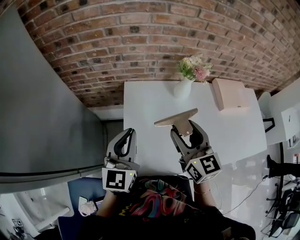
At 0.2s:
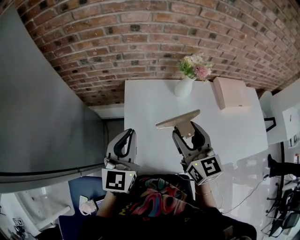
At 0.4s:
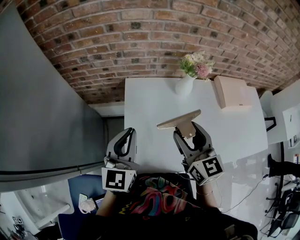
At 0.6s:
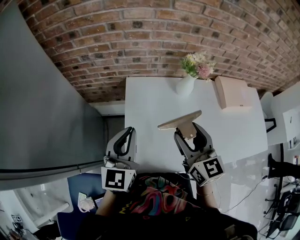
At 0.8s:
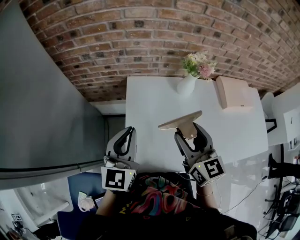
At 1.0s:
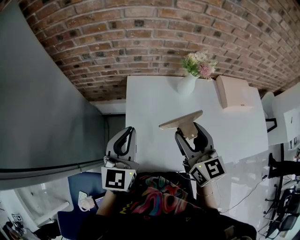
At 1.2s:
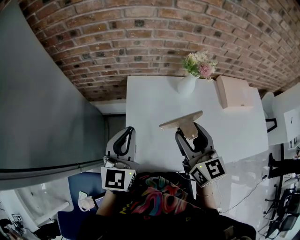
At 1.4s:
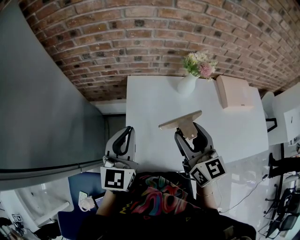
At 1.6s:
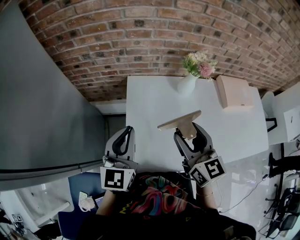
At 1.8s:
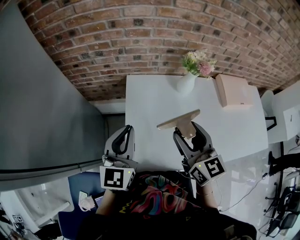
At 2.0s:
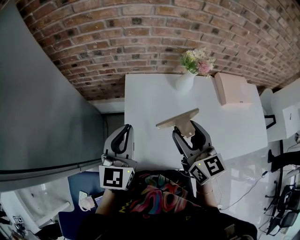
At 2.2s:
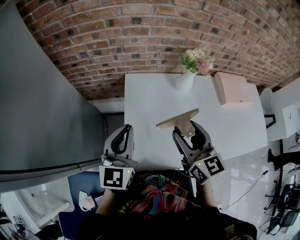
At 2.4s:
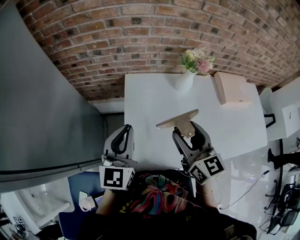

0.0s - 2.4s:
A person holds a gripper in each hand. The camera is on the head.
0.0s - 1.2s: The grippers stay close to where they were, moving slightly.
1.2s - 2.4s: Both grippers stay put.

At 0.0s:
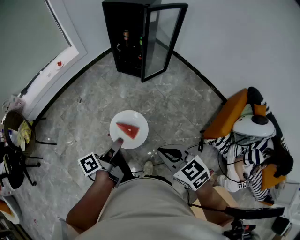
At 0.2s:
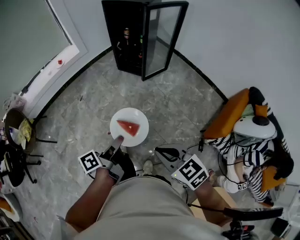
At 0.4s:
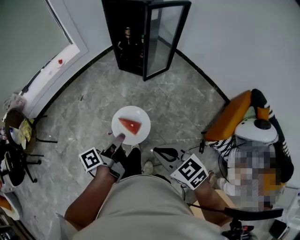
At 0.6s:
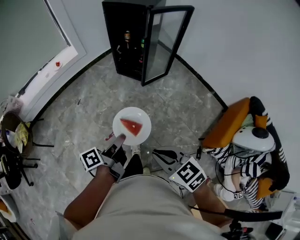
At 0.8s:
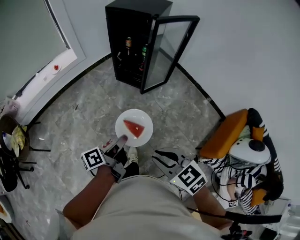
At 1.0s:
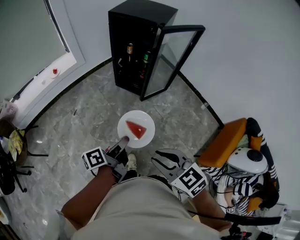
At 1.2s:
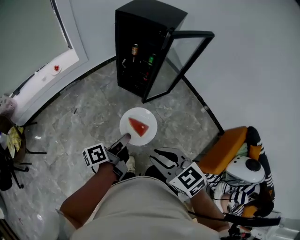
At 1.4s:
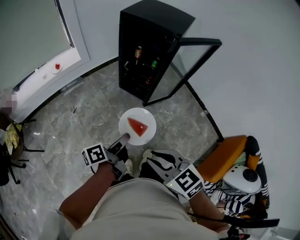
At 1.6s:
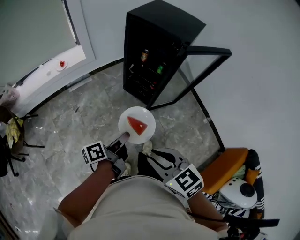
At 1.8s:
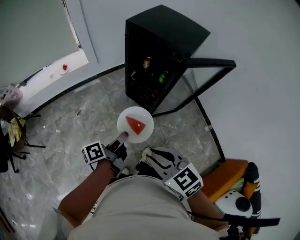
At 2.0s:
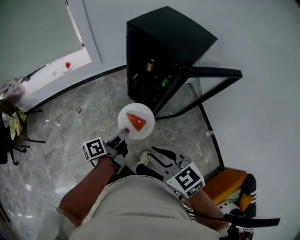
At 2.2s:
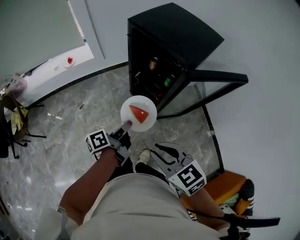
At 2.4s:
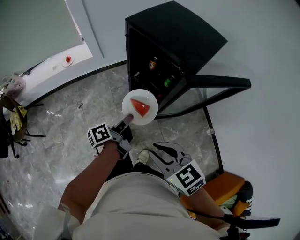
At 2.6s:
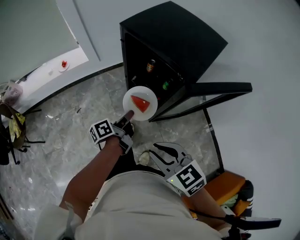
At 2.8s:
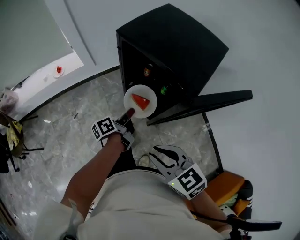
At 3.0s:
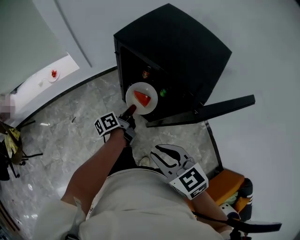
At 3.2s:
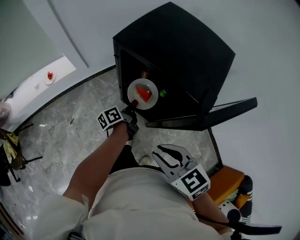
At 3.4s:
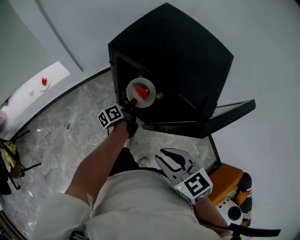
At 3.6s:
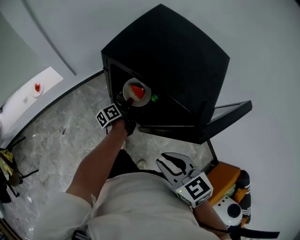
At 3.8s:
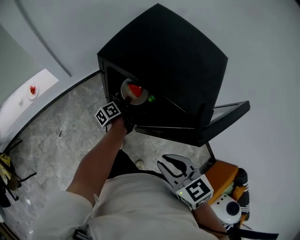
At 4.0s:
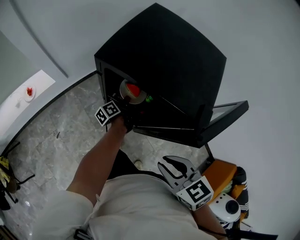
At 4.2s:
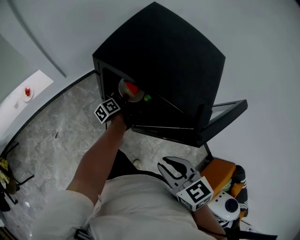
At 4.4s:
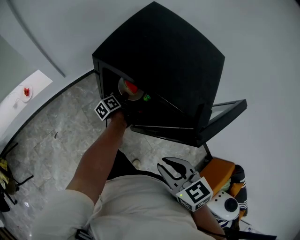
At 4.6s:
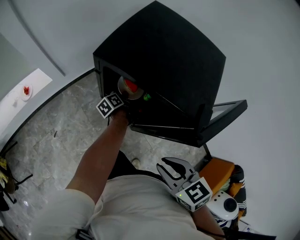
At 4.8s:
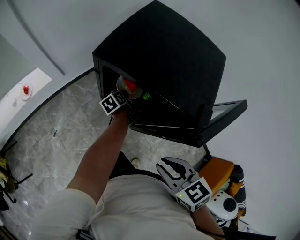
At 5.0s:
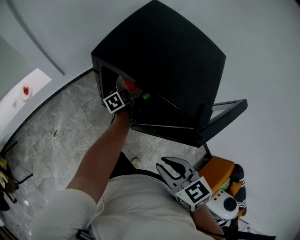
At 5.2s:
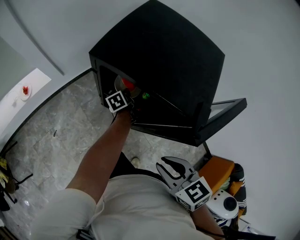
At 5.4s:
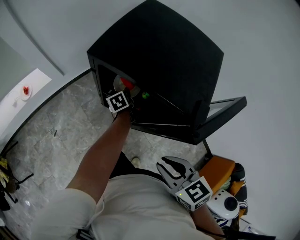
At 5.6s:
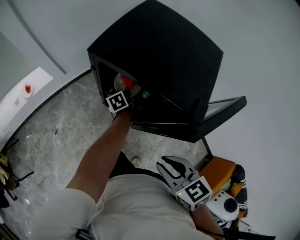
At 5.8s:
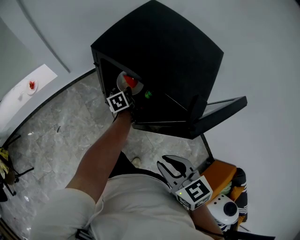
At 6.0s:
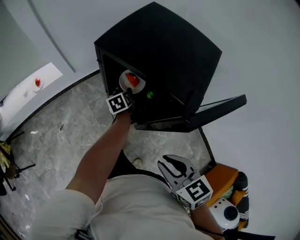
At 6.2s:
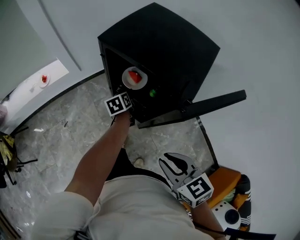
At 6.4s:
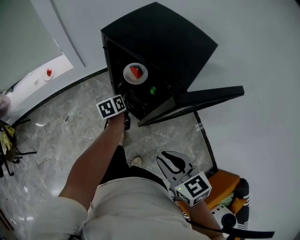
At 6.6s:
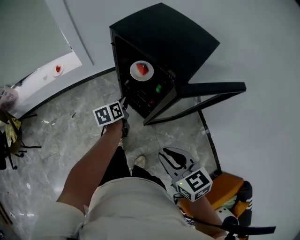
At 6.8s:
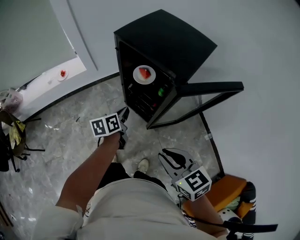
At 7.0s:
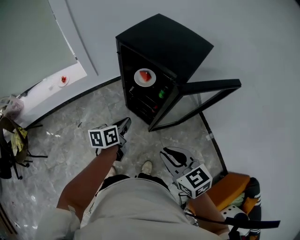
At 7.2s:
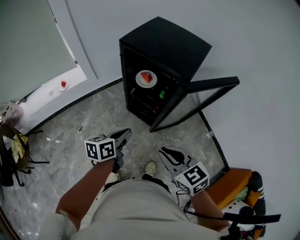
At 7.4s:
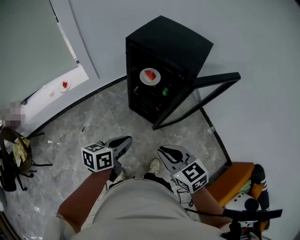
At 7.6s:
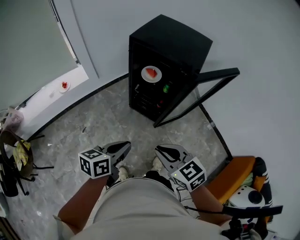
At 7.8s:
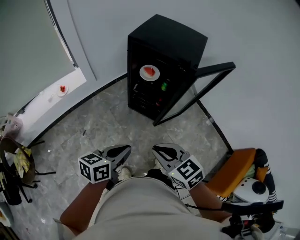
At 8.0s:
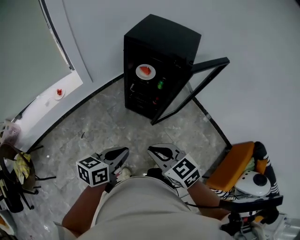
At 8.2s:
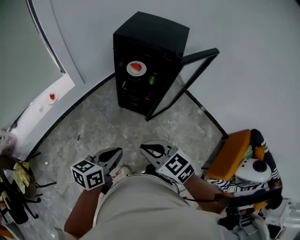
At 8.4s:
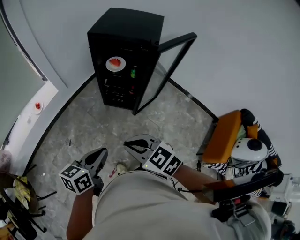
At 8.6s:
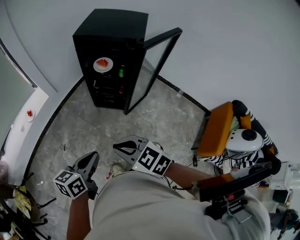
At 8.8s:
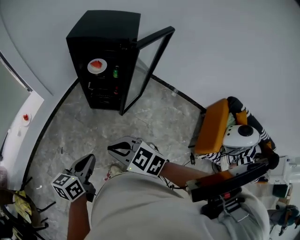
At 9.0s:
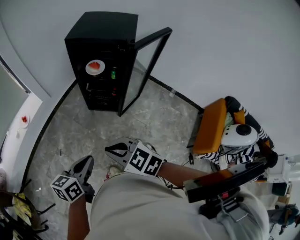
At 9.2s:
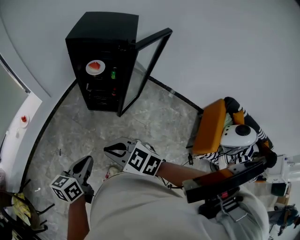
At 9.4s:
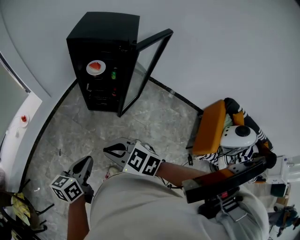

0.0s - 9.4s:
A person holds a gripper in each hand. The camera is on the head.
0.0s - 1.6s: The grippers both shift forward by roughly 40 cm.
1.6s - 3.2s: Both grippers move forward, some 40 cm.
3.2s - 4.8s: The left gripper travels forward and downward by roughly 15 cm, and changes its angle by some 20 degrees.
4.8s - 6.2s: The right gripper travels backward by approximately 10 cm. Meanwhile the left gripper goes approximately 10 cm upward and backward, swivels roughly 20 degrees, and opens its fingers.
6.2s - 7.8s: The right gripper travels to the left and backward by about 25 cm. The left gripper travels backward, upward and to the left by about 50 cm, changes its angle by approximately 50 degrees, and closes its fingers.
7.8s - 9.4s: The two grippers go roughly 10 cm to the left and backward.

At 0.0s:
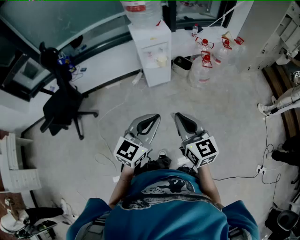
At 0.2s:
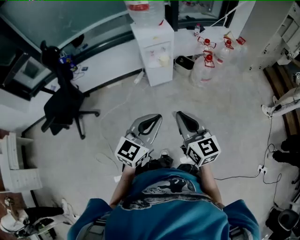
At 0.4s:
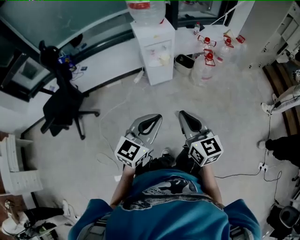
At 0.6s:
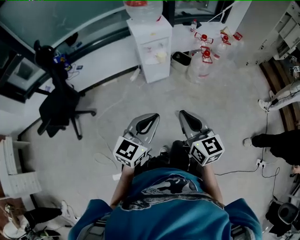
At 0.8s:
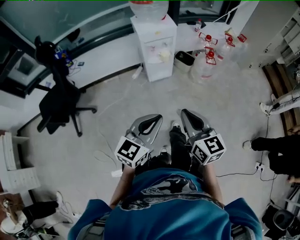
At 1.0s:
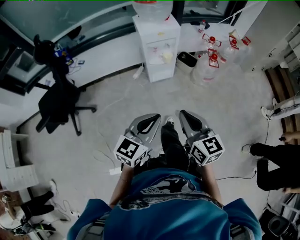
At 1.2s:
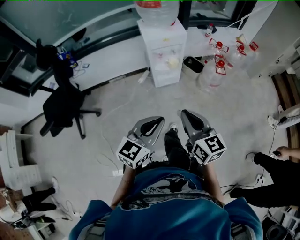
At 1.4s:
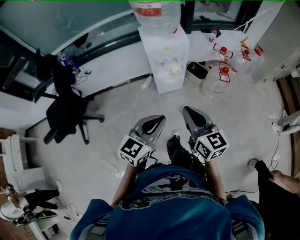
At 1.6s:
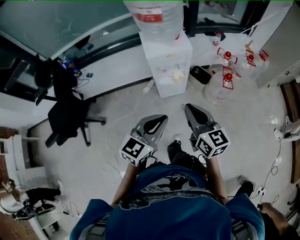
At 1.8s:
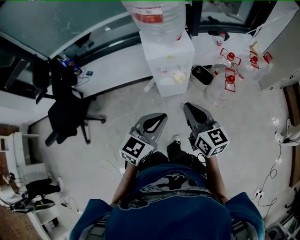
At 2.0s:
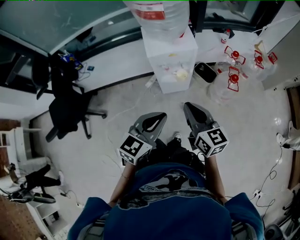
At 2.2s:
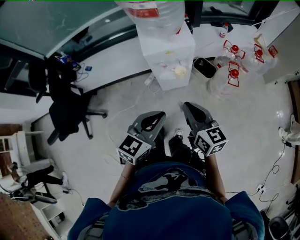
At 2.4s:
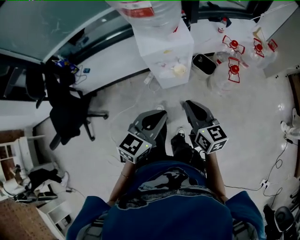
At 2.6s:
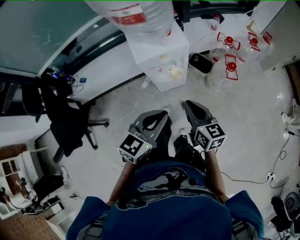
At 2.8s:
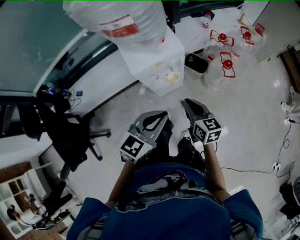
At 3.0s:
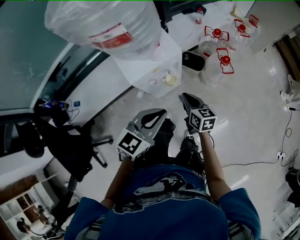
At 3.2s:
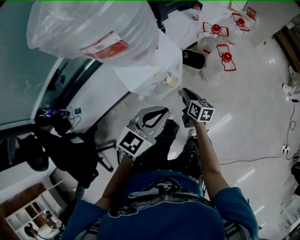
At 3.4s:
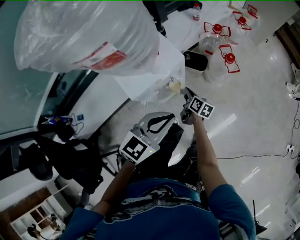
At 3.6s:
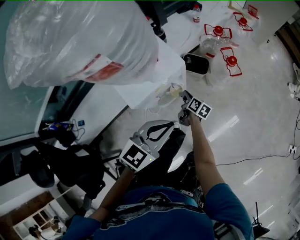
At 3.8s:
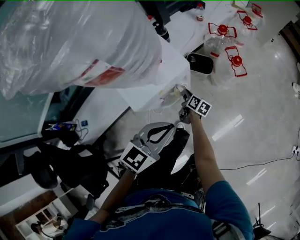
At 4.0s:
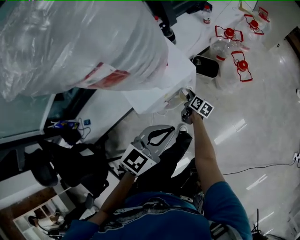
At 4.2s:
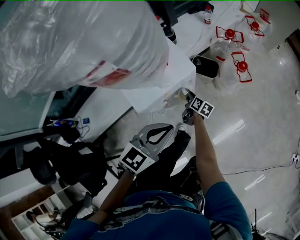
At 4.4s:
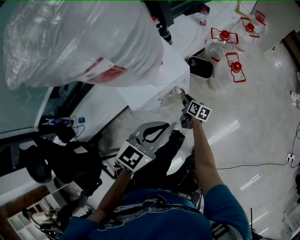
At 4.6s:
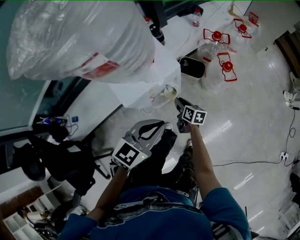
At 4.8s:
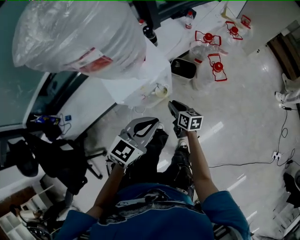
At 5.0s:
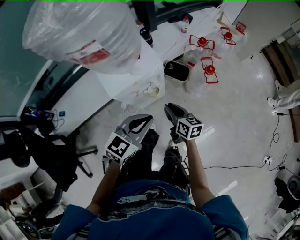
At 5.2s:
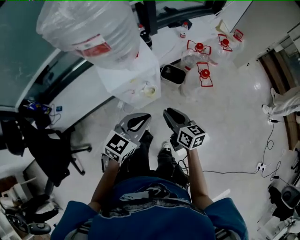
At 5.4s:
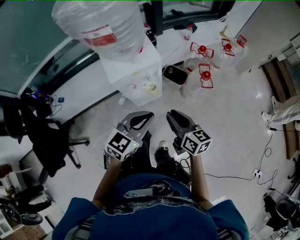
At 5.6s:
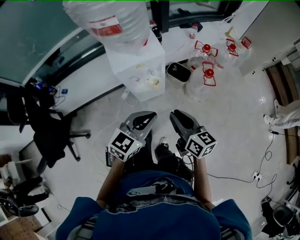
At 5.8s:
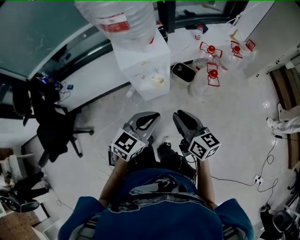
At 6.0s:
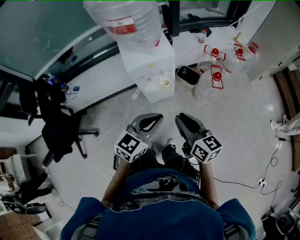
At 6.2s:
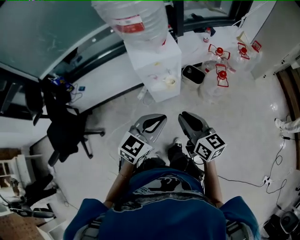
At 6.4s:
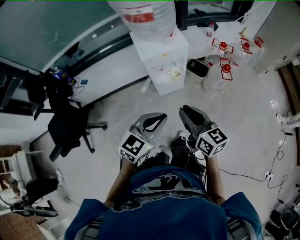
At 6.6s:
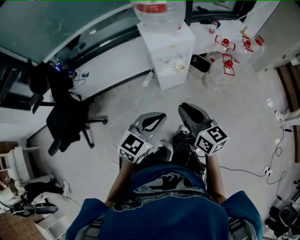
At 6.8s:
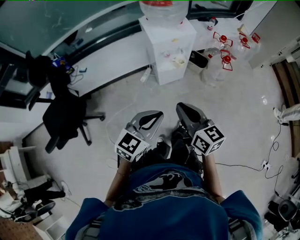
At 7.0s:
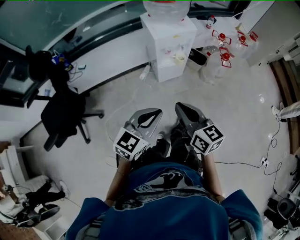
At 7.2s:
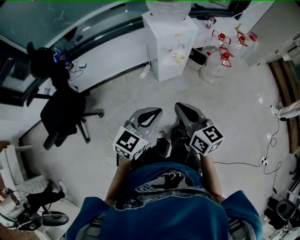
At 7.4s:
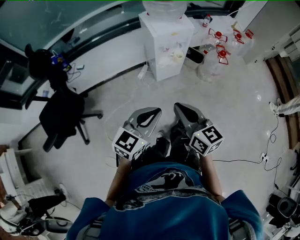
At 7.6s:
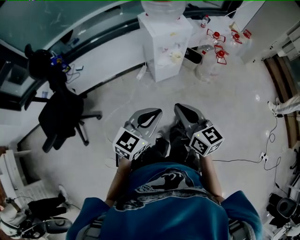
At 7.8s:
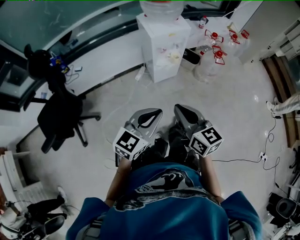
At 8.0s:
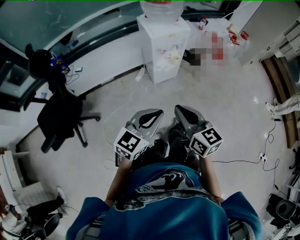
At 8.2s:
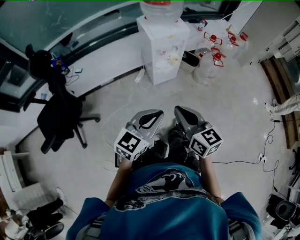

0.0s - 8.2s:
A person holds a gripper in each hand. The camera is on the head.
0.0s - 1.6s: Both grippers move forward, approximately 25 cm.
1.6s - 3.2s: The left gripper changes place by about 25 cm, and rotates about 30 degrees. Meanwhile the right gripper moves approximately 35 cm, and swivels approximately 40 degrees.
3.2s - 5.0s: The right gripper reaches some 15 cm downward, then returns.
5.0s - 6.6s: The right gripper heads backward and upward, covering approximately 35 cm, and changes its angle by approximately 30 degrees. Meanwhile the left gripper heads backward, covering roughly 25 cm.
6.6s - 8.2s: The left gripper moves backward, about 10 cm. The right gripper is displaced backward and to the left by some 15 cm.

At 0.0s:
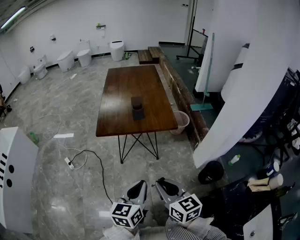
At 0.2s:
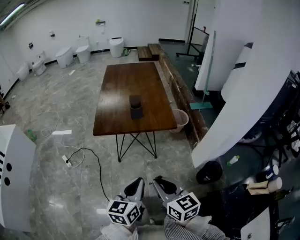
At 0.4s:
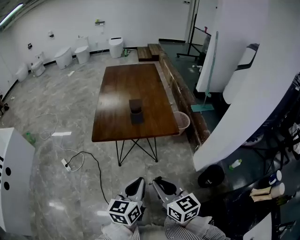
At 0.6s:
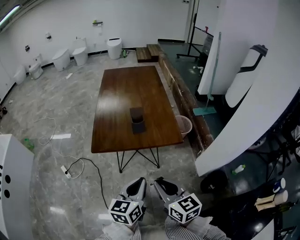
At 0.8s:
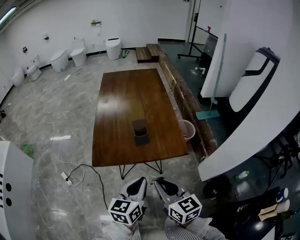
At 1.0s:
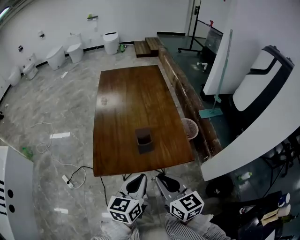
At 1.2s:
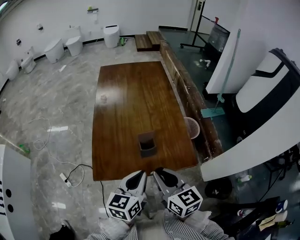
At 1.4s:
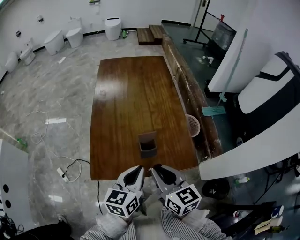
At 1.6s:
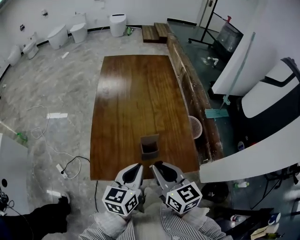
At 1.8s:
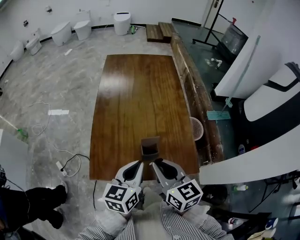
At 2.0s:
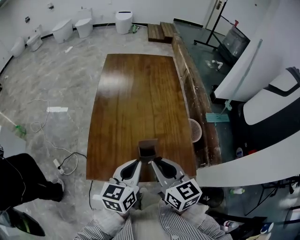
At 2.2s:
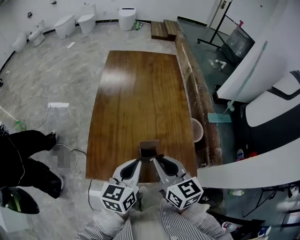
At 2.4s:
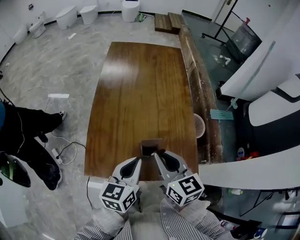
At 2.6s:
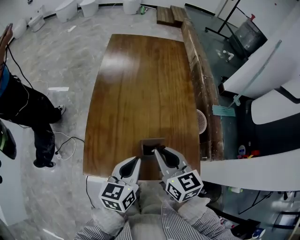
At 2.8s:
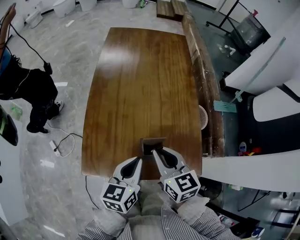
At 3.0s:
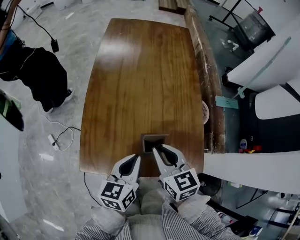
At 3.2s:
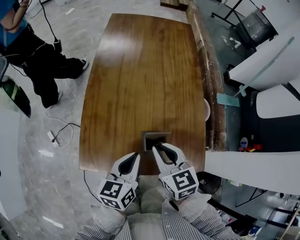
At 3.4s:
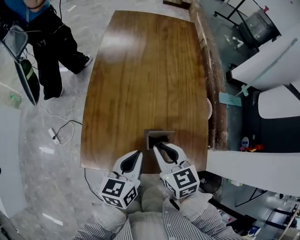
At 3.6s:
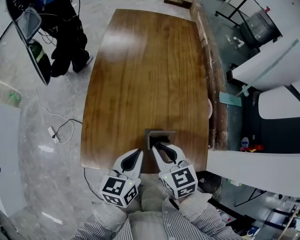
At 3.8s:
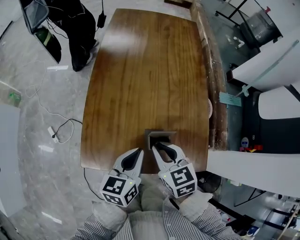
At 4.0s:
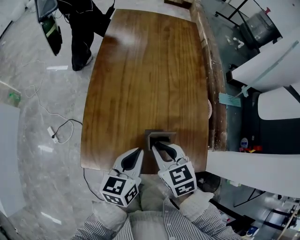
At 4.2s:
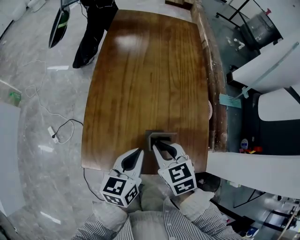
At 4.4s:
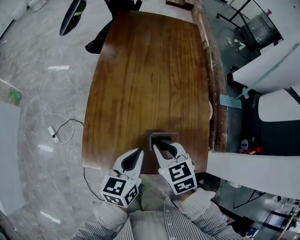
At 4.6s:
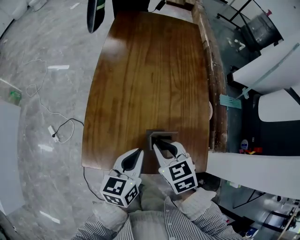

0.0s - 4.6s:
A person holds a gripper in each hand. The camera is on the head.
0.0s - 1.6s: The pair of grippers is taken forward, approximately 50 cm.
1.6s - 3.0s: The left gripper shifts some 10 cm downward and forward, while the right gripper moves forward and downward, approximately 10 cm.
3.0s - 4.6s: The right gripper rotates about 20 degrees.
